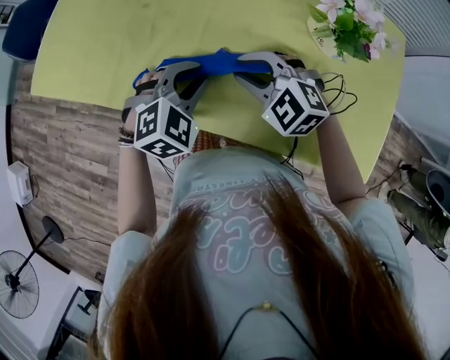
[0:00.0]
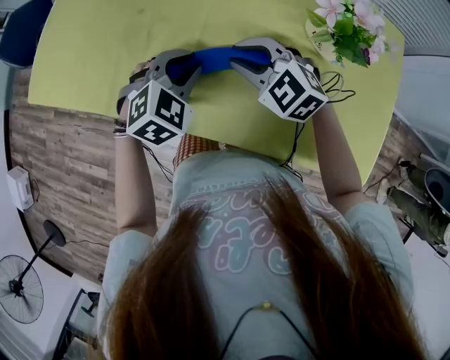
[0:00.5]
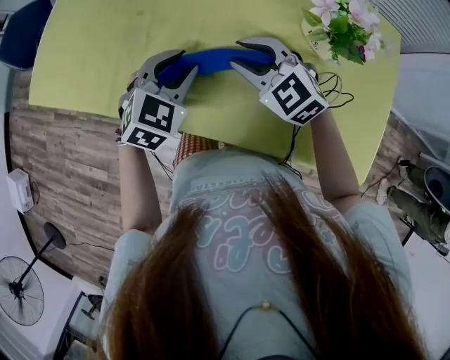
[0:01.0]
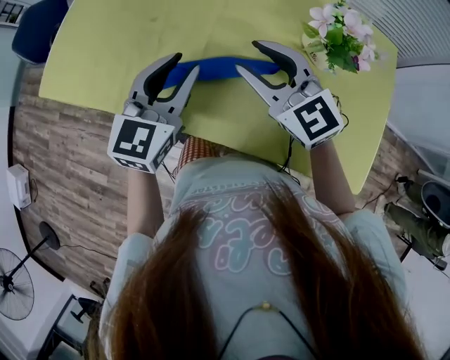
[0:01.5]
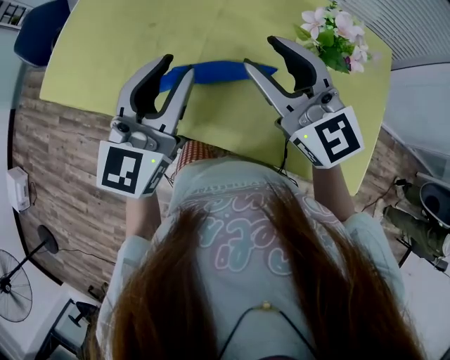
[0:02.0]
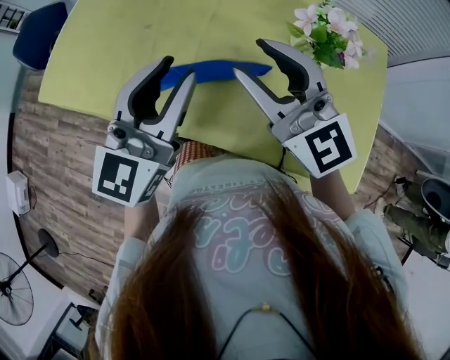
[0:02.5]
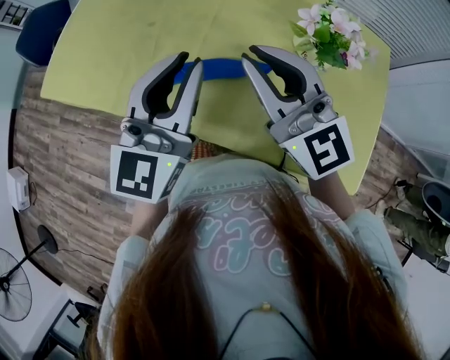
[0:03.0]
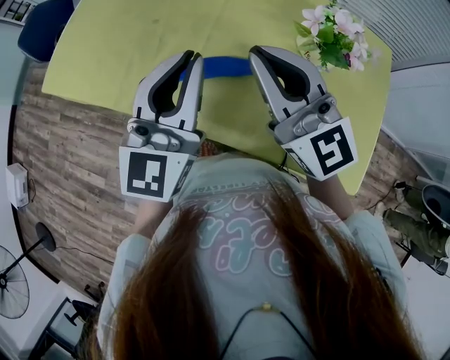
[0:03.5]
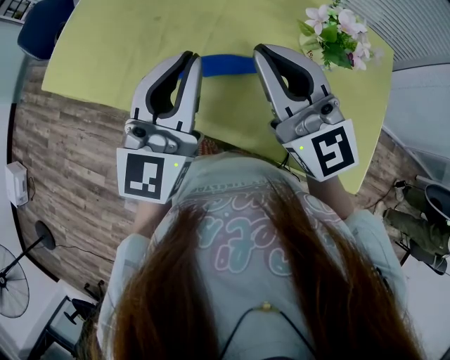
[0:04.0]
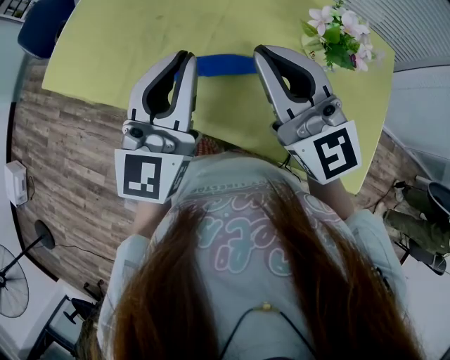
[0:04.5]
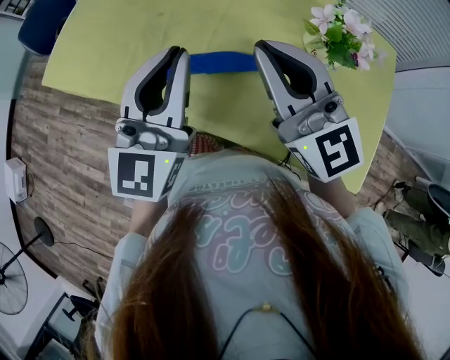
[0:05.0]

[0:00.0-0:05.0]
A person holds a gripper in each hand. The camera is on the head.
0:00.0 to 0:02.5: Both grippers travel together upward, roughly 20 cm. The right gripper tilts its fingers some 40 degrees upward. Meanwhile the left gripper angles its fingers upward, by roughly 50 degrees.
0:02.5 to 0:05.0: The right gripper closes.

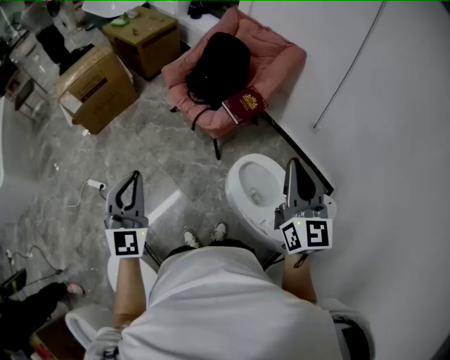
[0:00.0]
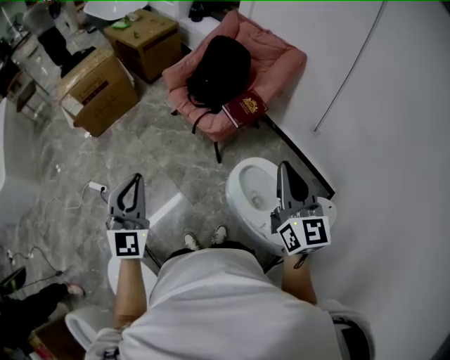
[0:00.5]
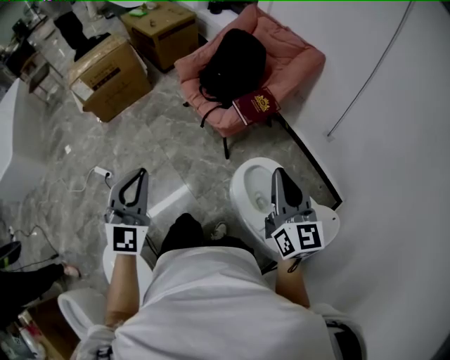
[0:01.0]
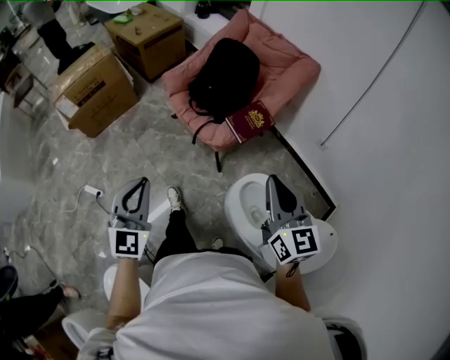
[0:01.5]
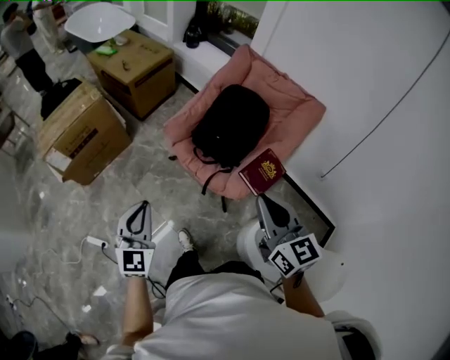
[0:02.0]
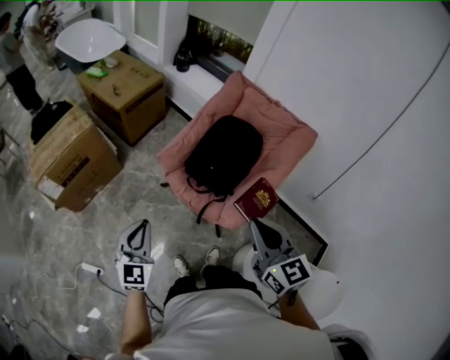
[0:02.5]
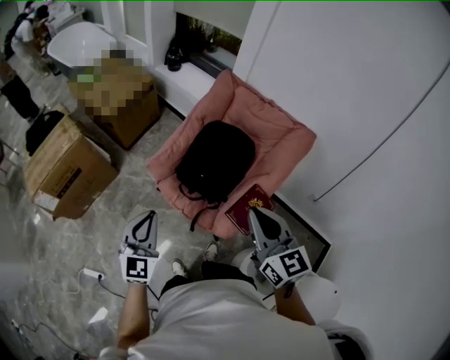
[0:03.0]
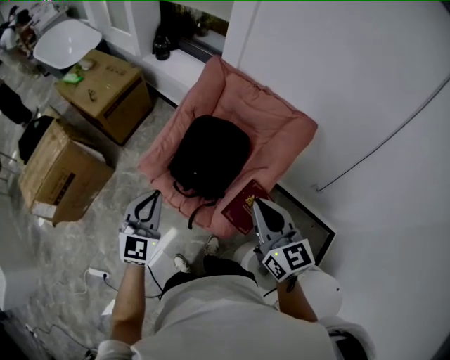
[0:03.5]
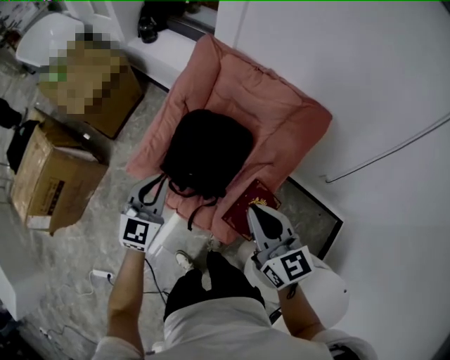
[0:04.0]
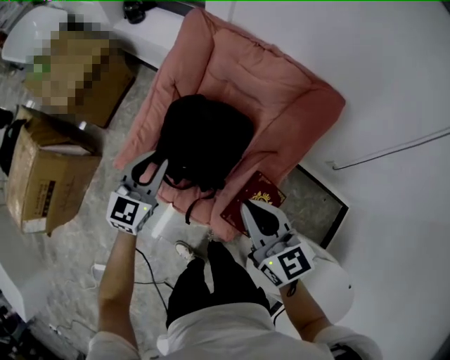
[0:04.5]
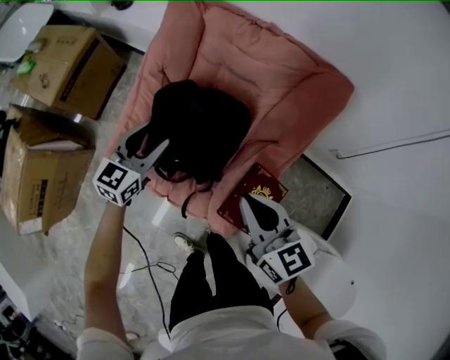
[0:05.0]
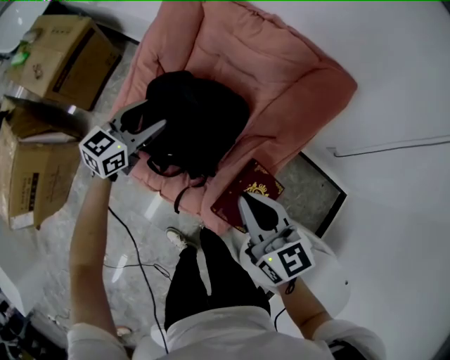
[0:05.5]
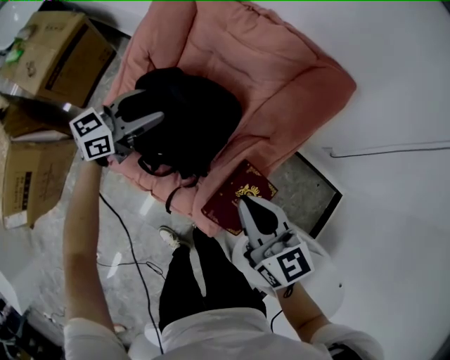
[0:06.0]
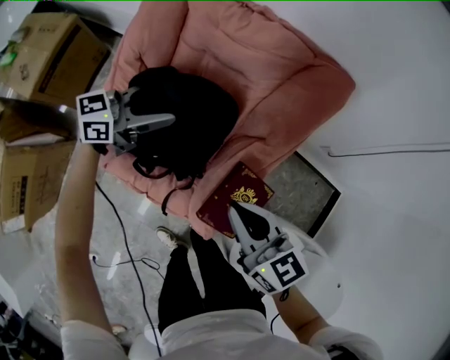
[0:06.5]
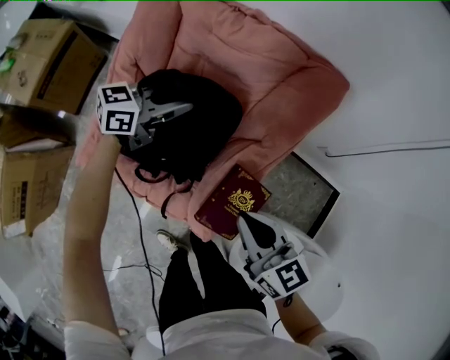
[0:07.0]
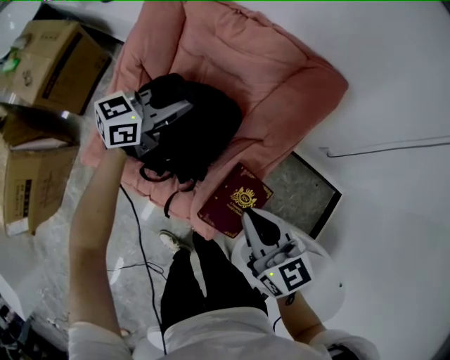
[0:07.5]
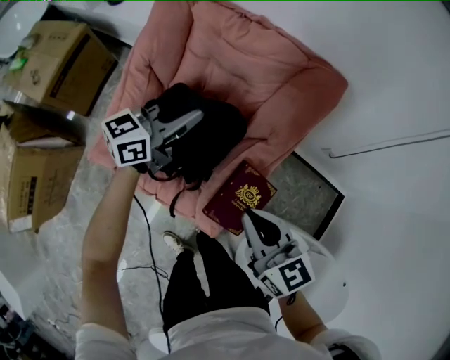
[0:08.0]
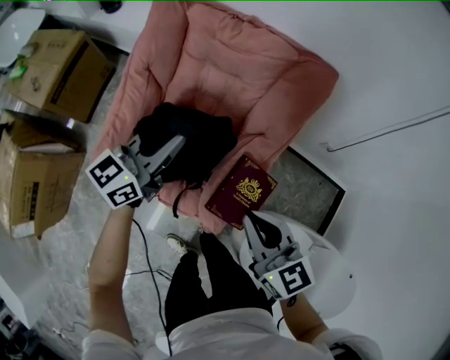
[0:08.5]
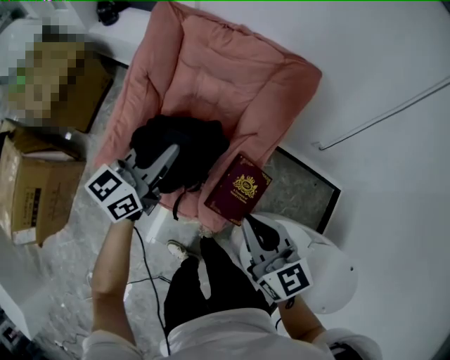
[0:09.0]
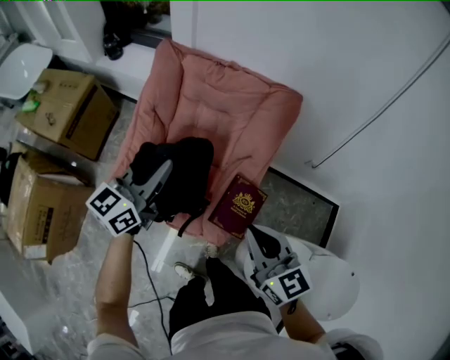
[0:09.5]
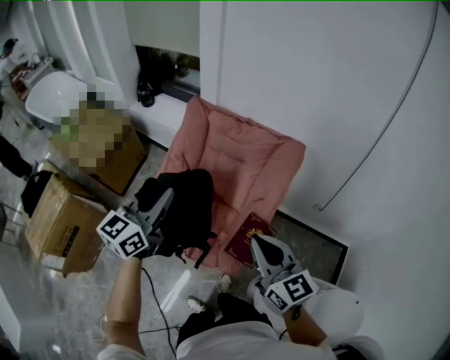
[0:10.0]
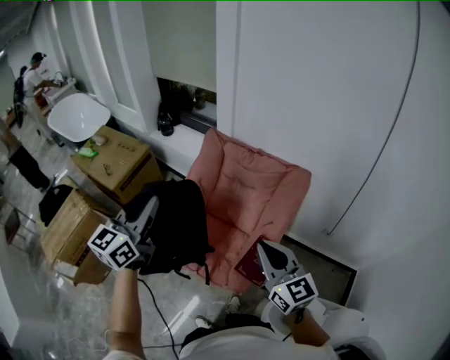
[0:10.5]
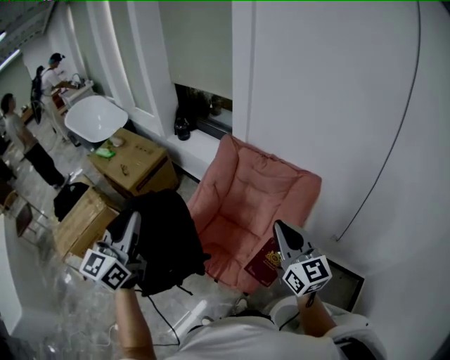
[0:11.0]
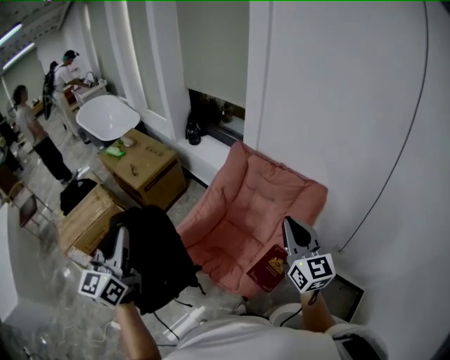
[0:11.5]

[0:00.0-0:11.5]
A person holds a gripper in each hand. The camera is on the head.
0:00.0 to 0:02.0: The right gripper travels forward and to the left by about 35 cm; the left gripper is displaced forward by approximately 35 cm.
0:02.0 to 0:04.0: The two grippers go roughly 35 cm forward and to the right. The left gripper rotates roughly 20 degrees.
0:04.0 to 0:06.0: The left gripper goes roughly 25 cm forward and downward, rotates some 40 degrees, and opens. Meanwhile the right gripper is displaced downward by roughly 15 cm.
0:06.0 to 0:07.5: The left gripper goes roughly 10 cm to the right, and closes up.
0:07.5 to 0:09.5: The left gripper travels backward and upward by approximately 25 cm. The right gripper goes about 15 cm upward and backward.
0:09.5 to 0:11.5: The left gripper ends up approximately 40 cm from where it was, and turns by roughly 50 degrees. The right gripper goes about 20 cm upward, and turns by roughly 20 degrees.

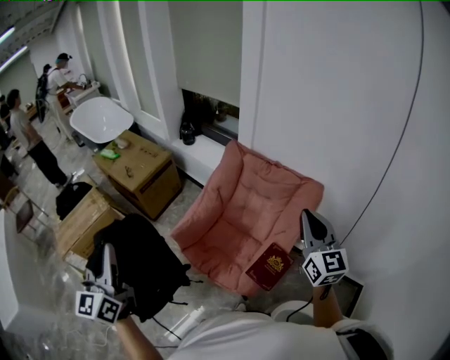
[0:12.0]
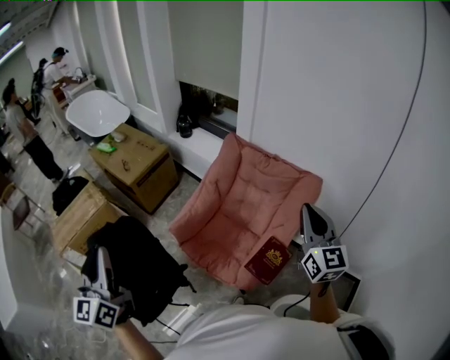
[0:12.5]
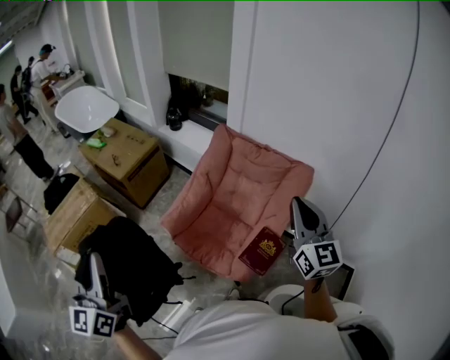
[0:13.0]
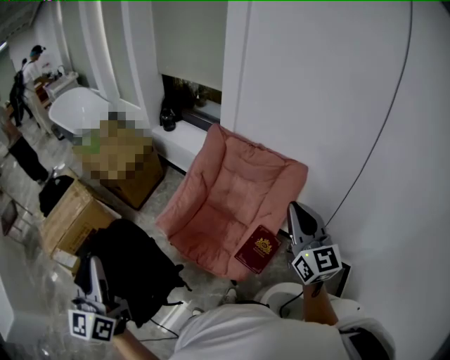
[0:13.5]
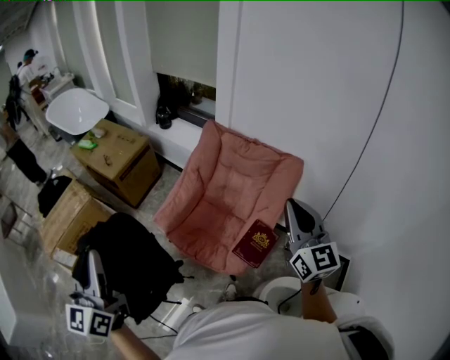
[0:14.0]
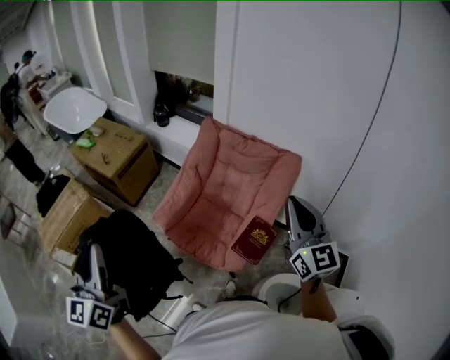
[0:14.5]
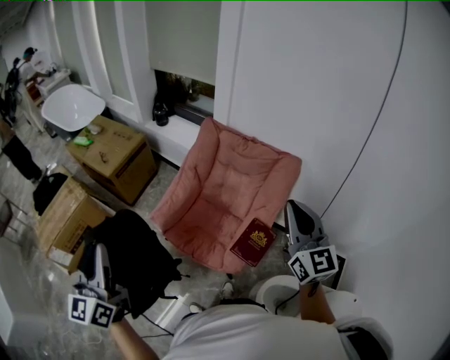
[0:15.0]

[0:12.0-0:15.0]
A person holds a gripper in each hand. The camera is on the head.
0:12.0 to 0:13.5: The grippers move only a little.
0:13.5 to 0:15.0: The grippers stay close to where they were, moving slightly.

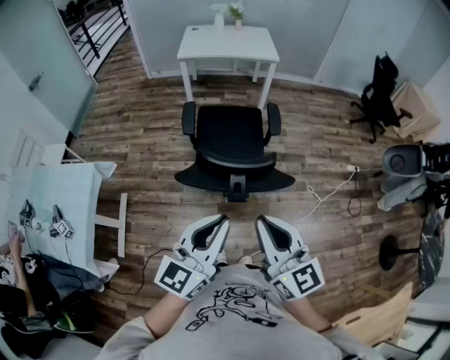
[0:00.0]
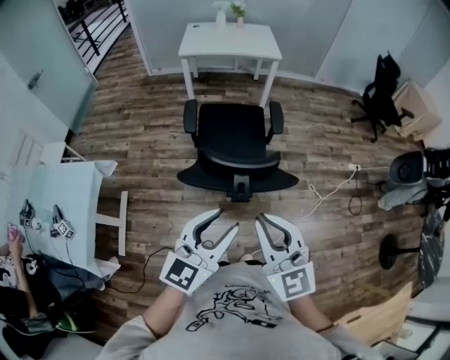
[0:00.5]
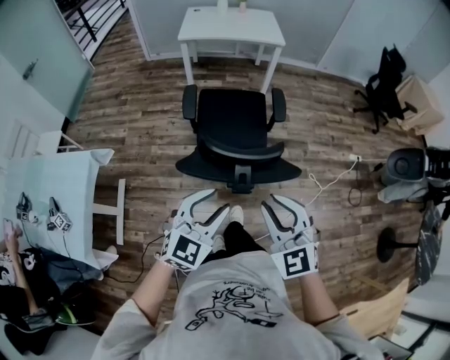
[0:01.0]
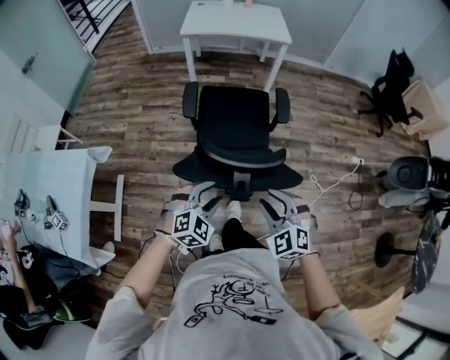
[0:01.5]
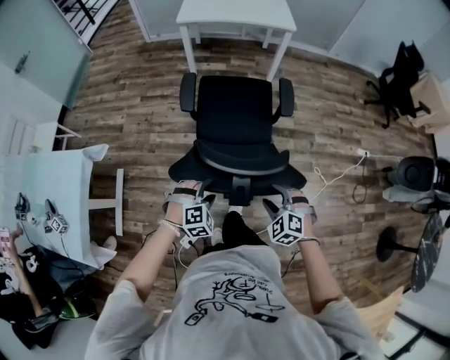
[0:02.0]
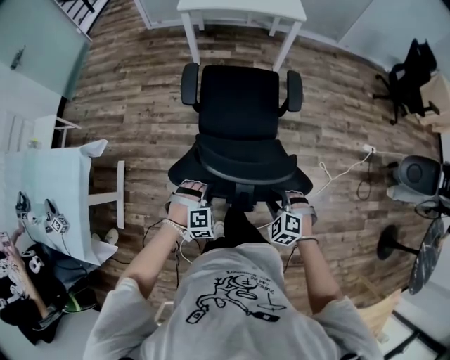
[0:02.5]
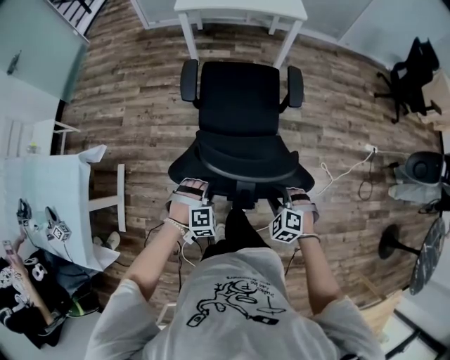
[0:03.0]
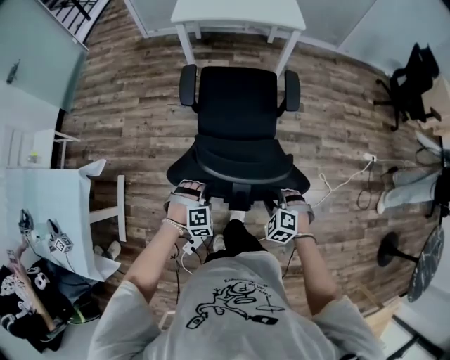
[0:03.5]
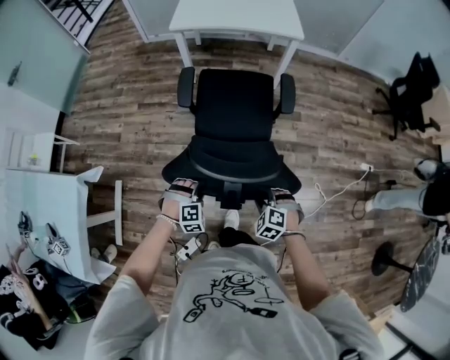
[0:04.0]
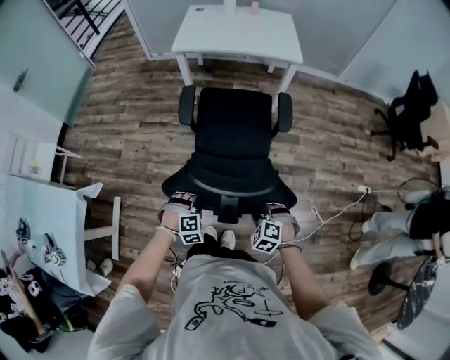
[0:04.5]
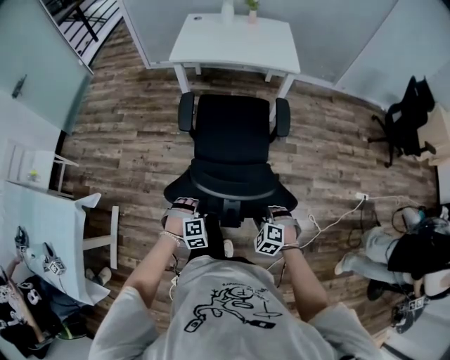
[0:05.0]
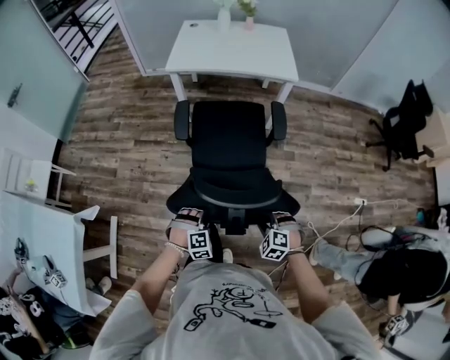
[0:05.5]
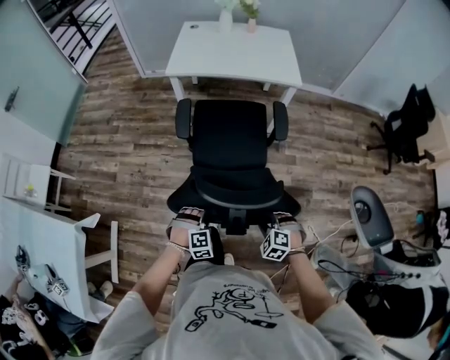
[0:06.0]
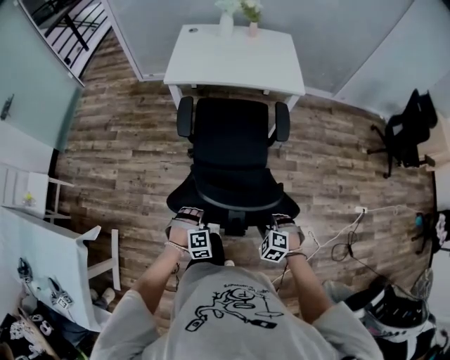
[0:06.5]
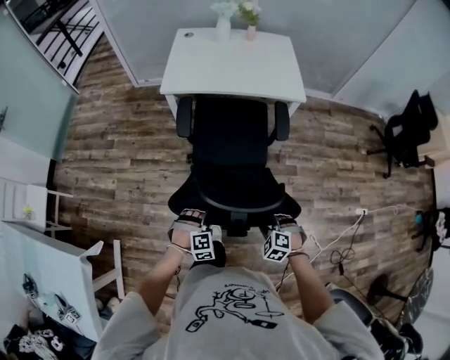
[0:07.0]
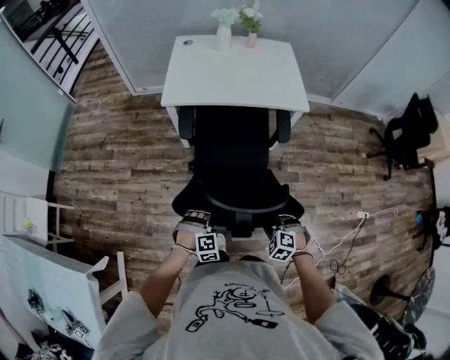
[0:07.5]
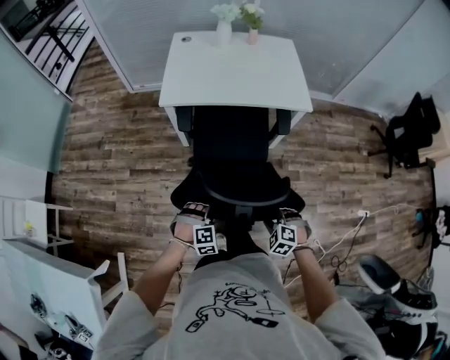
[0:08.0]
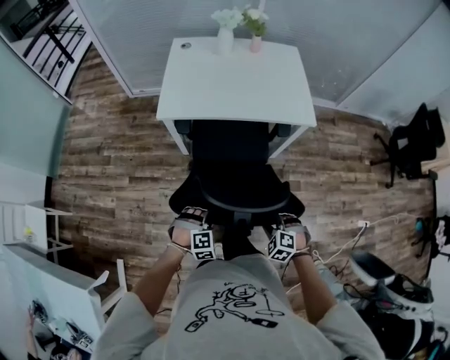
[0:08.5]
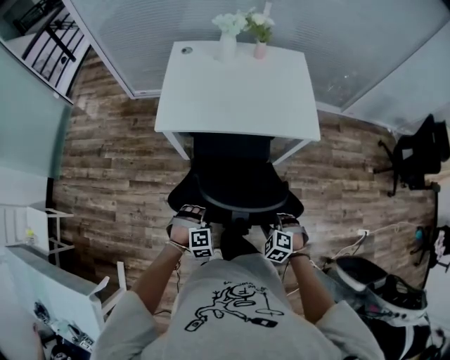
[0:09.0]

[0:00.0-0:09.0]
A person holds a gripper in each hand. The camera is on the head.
0:00.0 to 0:02.0: The grippers both shift downward and forward by some 35 cm. The right gripper tips its fingers downward by approximately 50 degrees, and opens. Meanwhile the left gripper tips its fingers downward by roughly 60 degrees, and opens.
0:02.0 to 0:04.5: Both grippers travel together forward, roughly 20 cm. The left gripper closes up. The right gripper closes its fingers.
0:04.5 to 0:07.0: The two grippers go some 20 cm forward.
0:07.0 to 0:09.0: The two grippers go approximately 25 cm forward.
